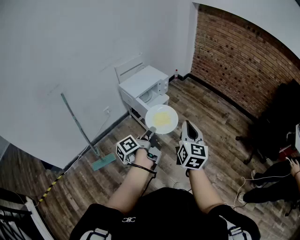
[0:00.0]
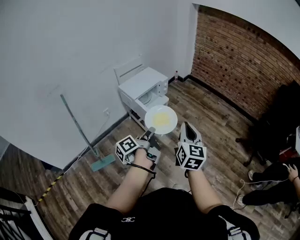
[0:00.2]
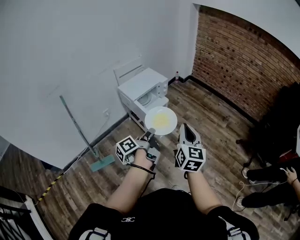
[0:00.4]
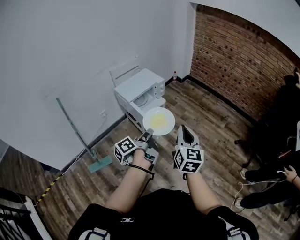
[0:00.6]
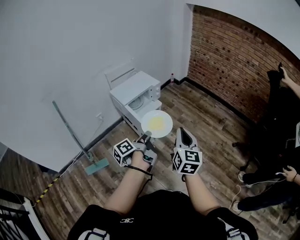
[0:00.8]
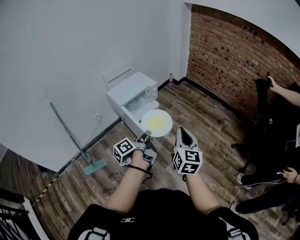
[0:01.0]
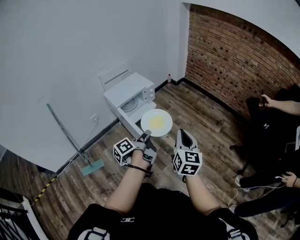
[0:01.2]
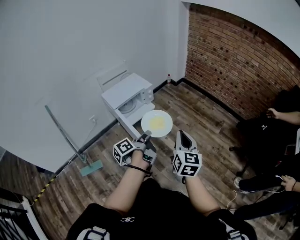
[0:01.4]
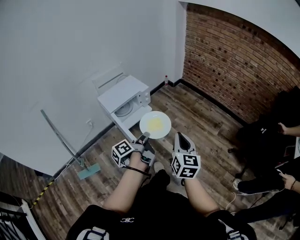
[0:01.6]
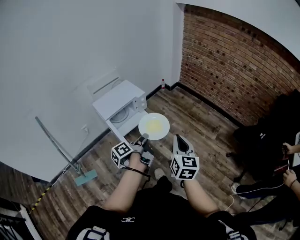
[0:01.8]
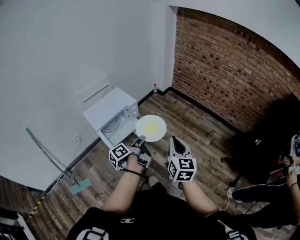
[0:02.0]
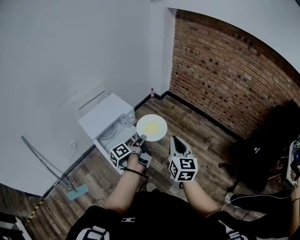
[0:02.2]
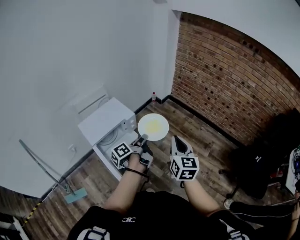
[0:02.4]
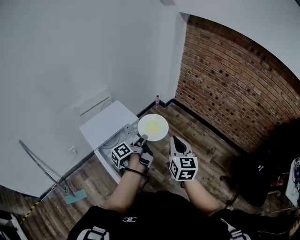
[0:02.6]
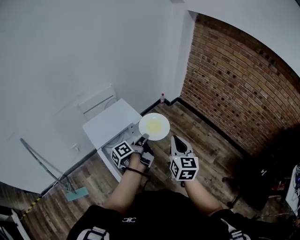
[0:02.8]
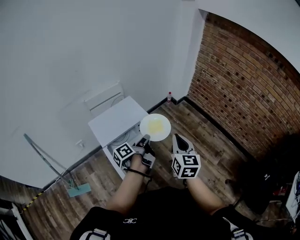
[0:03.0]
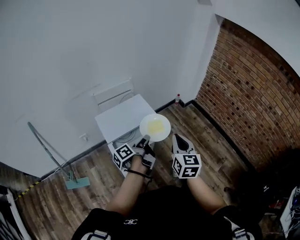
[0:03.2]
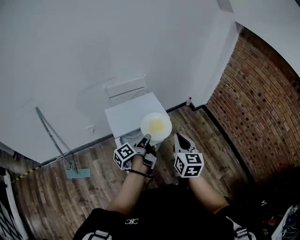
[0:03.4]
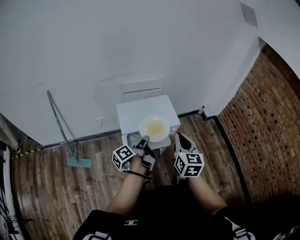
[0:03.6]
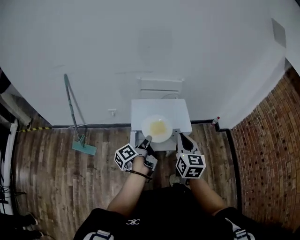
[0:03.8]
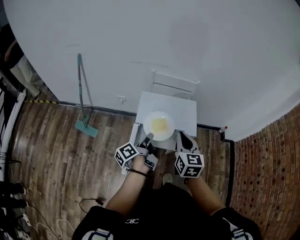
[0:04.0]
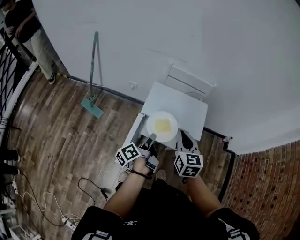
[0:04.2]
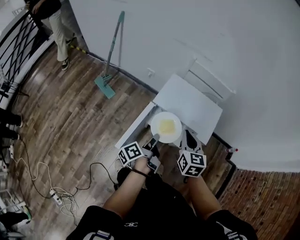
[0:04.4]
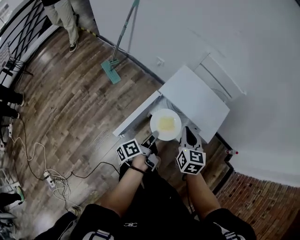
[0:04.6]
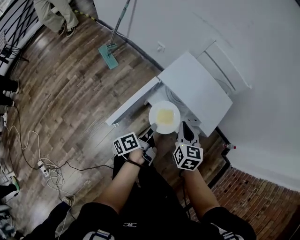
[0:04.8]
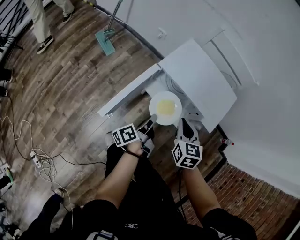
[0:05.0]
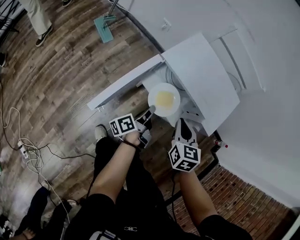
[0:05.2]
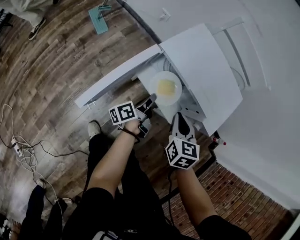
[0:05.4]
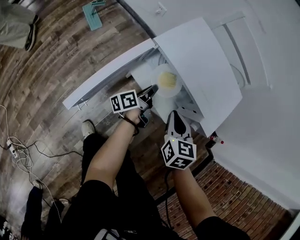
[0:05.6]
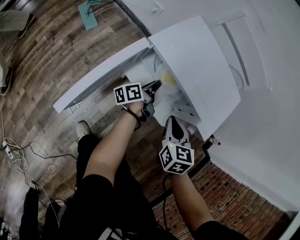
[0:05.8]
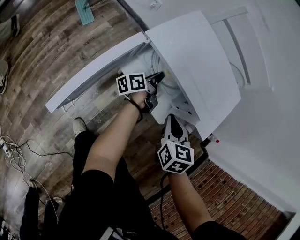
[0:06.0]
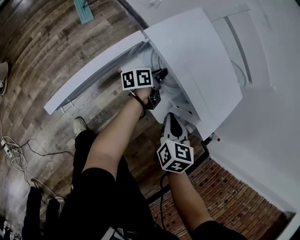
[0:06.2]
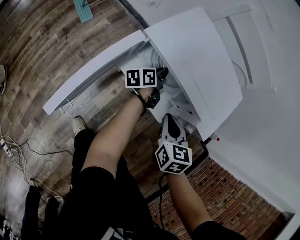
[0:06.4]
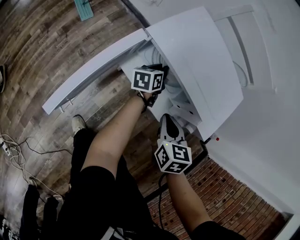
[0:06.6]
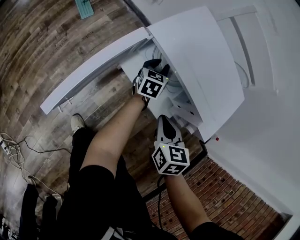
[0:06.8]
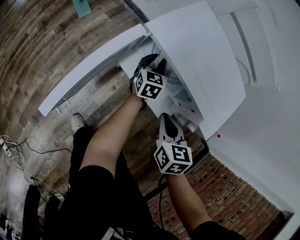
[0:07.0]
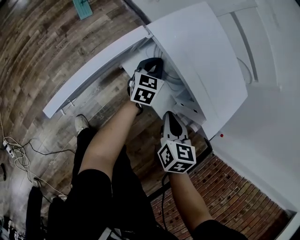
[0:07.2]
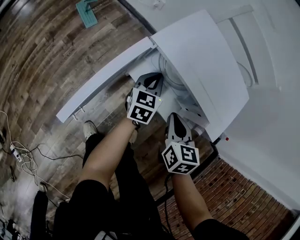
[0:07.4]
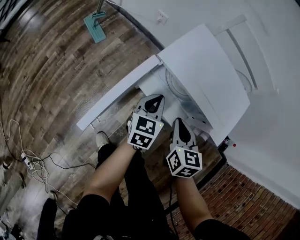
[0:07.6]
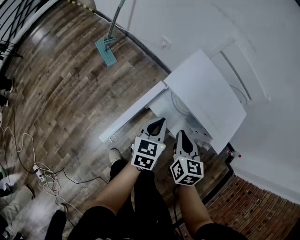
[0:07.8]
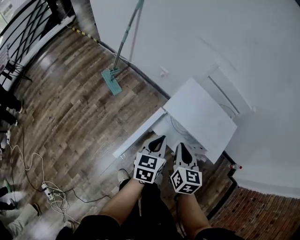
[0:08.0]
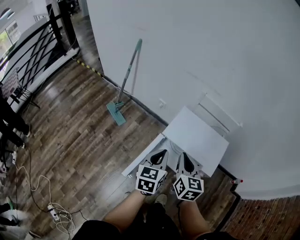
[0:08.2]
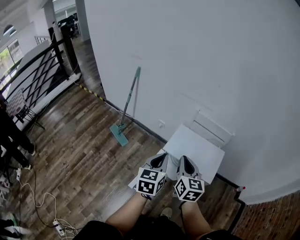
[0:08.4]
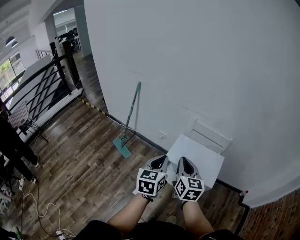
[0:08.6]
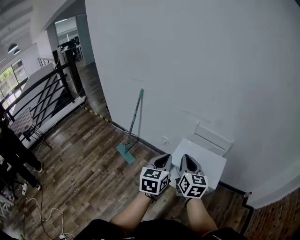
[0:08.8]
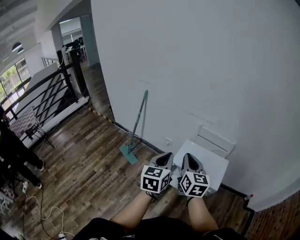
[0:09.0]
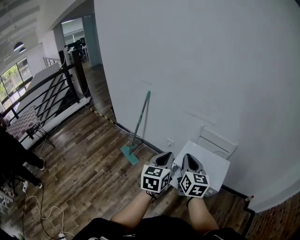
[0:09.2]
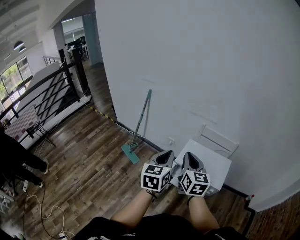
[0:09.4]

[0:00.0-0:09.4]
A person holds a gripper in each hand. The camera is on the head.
0:00.0 to 0:01.6: The right gripper ends up approximately 20 cm from where it was.
0:01.6 to 0:03.2: The right gripper shifts by roughly 35 cm.
0:03.2 to 0:04.8: The right gripper goes about 25 cm downward, and changes its angle by some 70 degrees.
0:04.8 to 0:06.2: The right gripper goes about 20 cm downward.
0:06.2 to 0:07.8: The right gripper is displaced upward by about 10 cm.
0:07.8 to 0:09.4: The right gripper shifts about 40 cm upward, and turns by roughly 30 degrees.

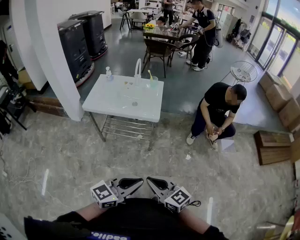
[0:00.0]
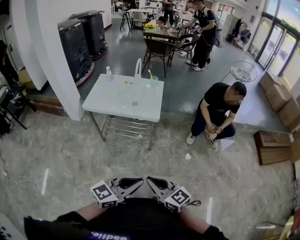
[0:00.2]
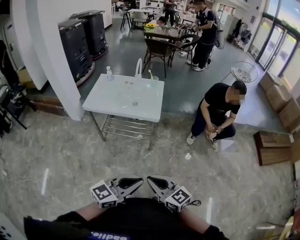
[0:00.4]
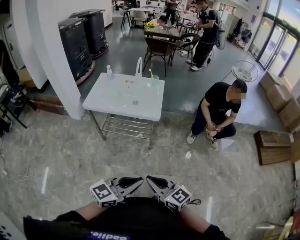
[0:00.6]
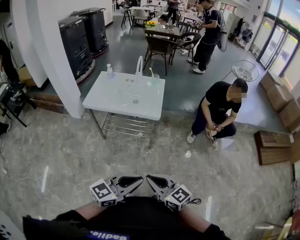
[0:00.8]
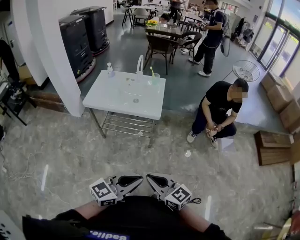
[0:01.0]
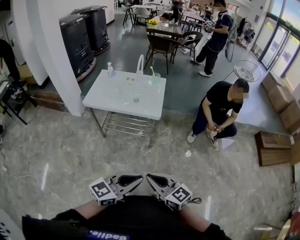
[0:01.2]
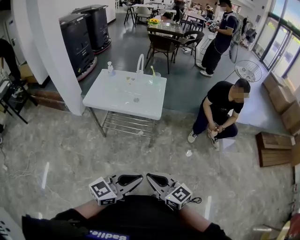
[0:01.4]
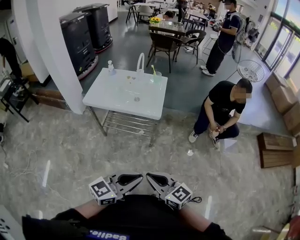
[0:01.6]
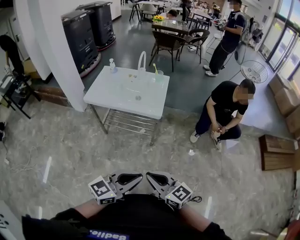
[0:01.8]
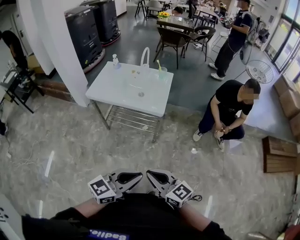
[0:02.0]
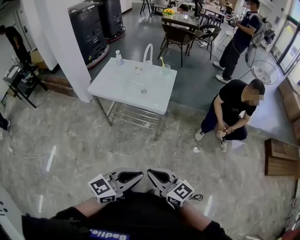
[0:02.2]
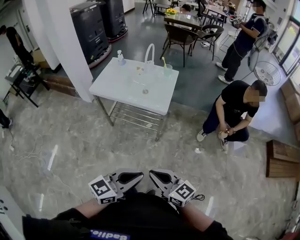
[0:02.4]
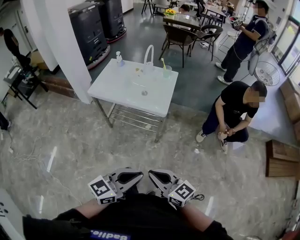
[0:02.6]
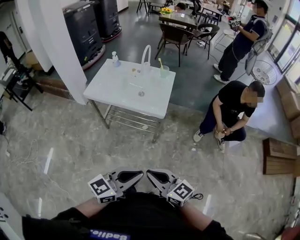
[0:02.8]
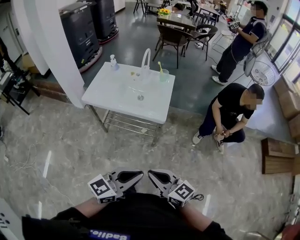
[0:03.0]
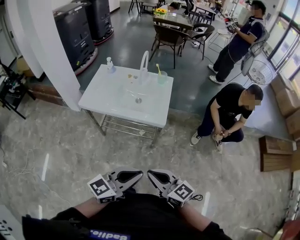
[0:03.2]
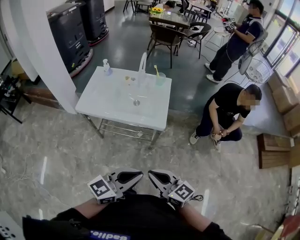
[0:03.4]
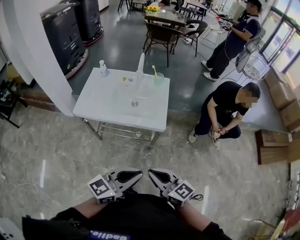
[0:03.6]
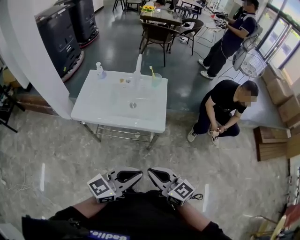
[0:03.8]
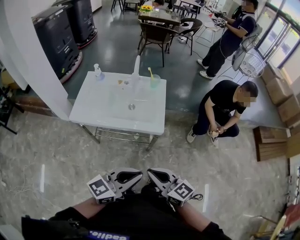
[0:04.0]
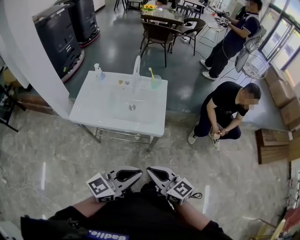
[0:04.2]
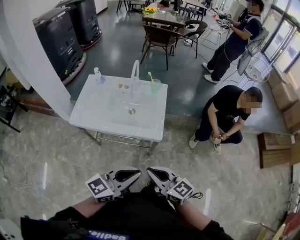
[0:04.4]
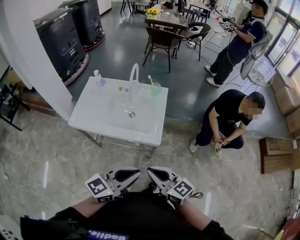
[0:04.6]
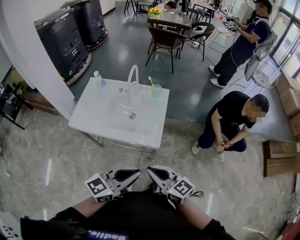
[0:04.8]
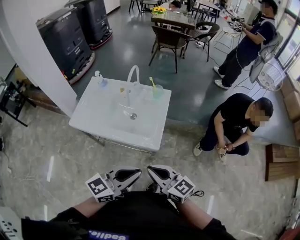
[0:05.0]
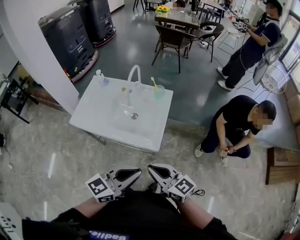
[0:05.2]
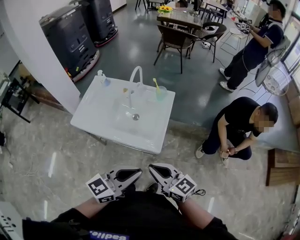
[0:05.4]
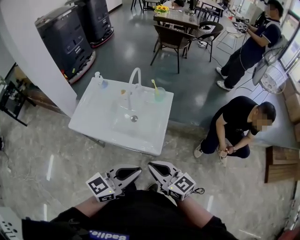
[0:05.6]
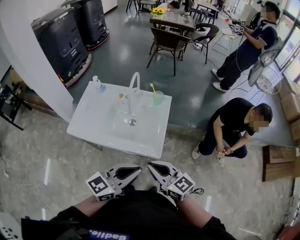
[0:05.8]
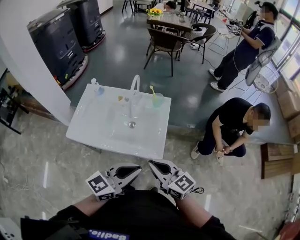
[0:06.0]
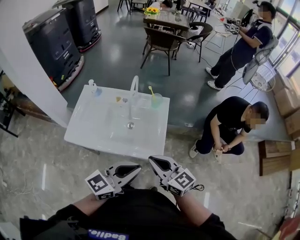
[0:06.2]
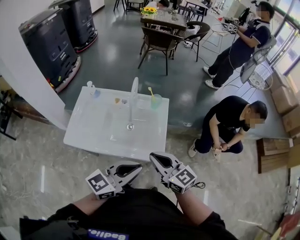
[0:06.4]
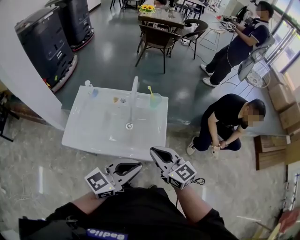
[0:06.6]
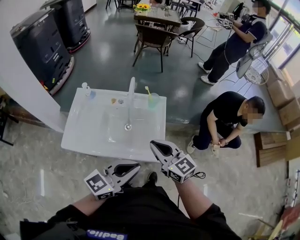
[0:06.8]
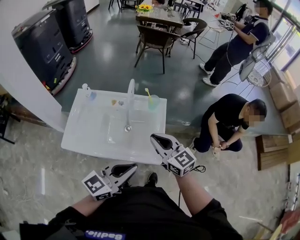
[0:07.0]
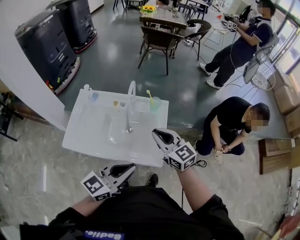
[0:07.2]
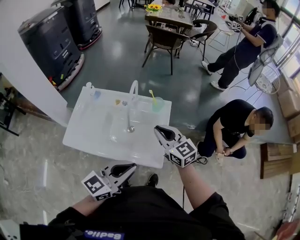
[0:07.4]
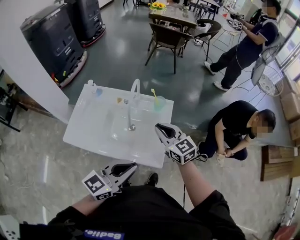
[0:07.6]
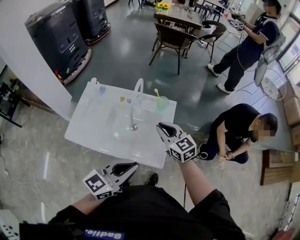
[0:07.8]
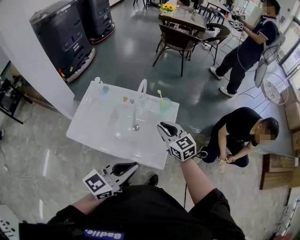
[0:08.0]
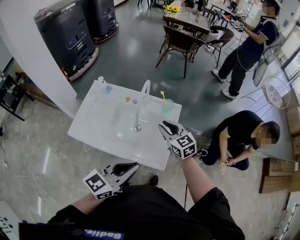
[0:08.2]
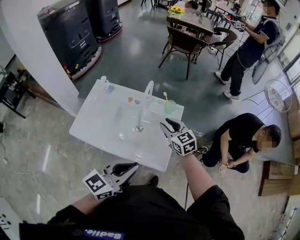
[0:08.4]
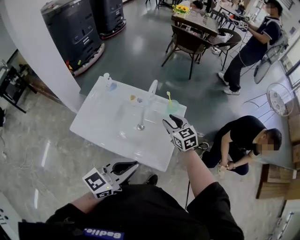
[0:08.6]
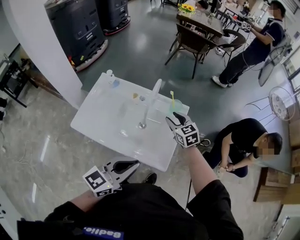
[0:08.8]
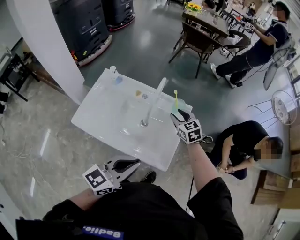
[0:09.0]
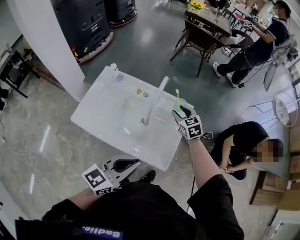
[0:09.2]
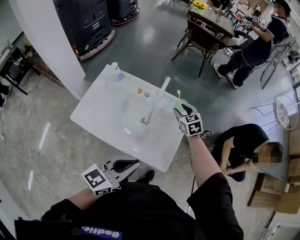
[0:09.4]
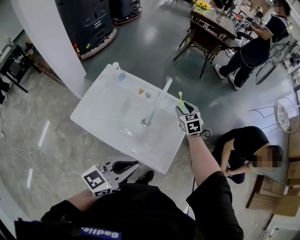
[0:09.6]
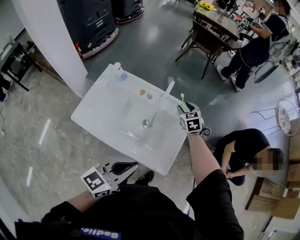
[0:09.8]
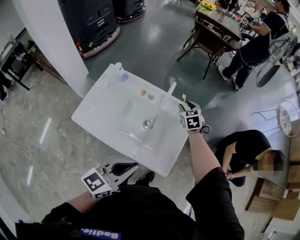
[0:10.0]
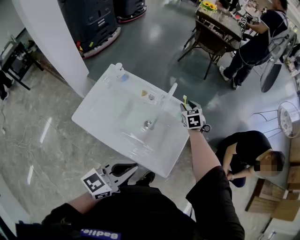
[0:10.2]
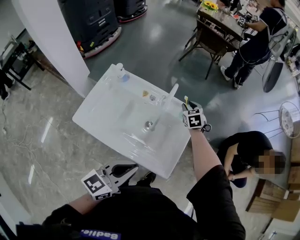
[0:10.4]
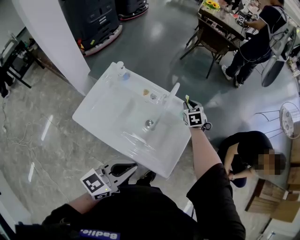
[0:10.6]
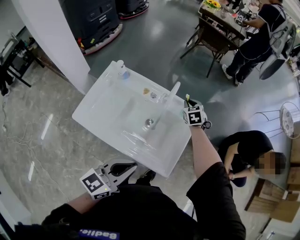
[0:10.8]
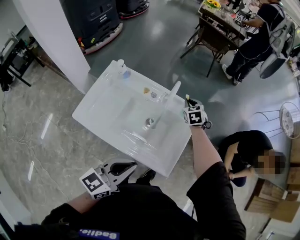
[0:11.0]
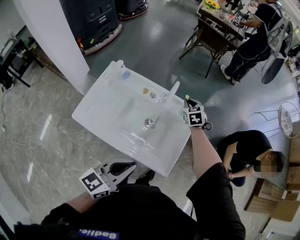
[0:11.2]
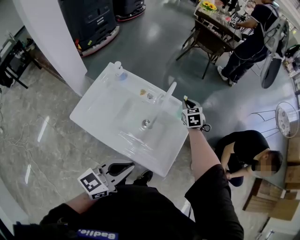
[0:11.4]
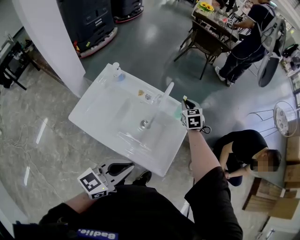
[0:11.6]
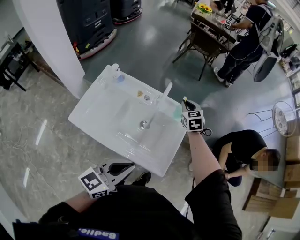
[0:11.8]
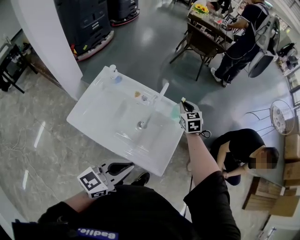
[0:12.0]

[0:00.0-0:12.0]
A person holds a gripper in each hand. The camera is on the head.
0:00.0 to 0:01.6: The grippers stay close to where they were, moving slightly.
0:01.6 to 0:03.0: The two grippers go some 10 cm forward.
0:03.0 to 0:04.4: Both grippers travel together forward, some 15 cm.
0:04.4 to 0:06.0: The two grippers go some 15 cm forward.
0:06.0 to 0:07.6: The left gripper shifts approximately 5 cm forward, while the right gripper travels forward by approximately 20 cm.
0:07.6 to 0:09.0: The right gripper moves forward and downward, some 15 cm, and opens.
0:09.0 to 0:10.4: The right gripper travels forward and downward by approximately 15 cm.
0:10.4 to 0:12.0: The right gripper moves upward, approximately 10 cm, and closes its fingers.

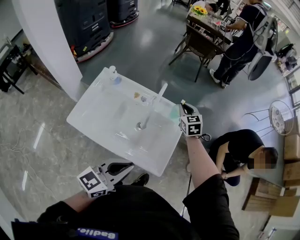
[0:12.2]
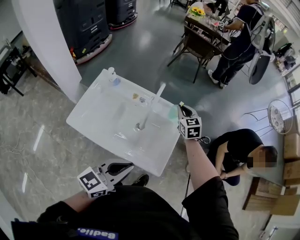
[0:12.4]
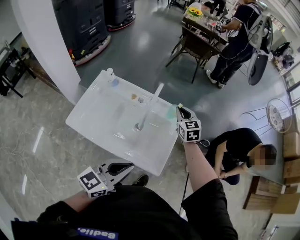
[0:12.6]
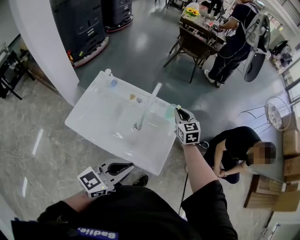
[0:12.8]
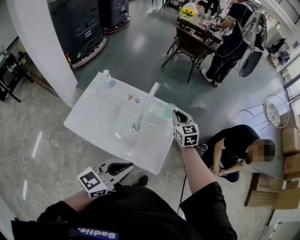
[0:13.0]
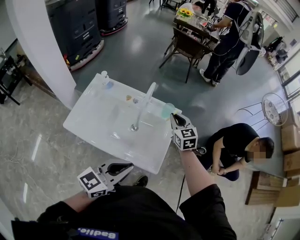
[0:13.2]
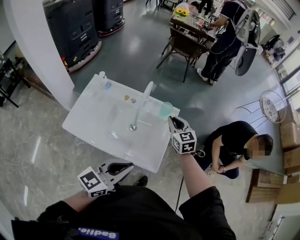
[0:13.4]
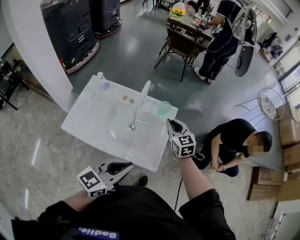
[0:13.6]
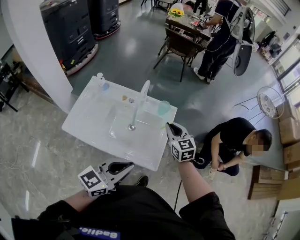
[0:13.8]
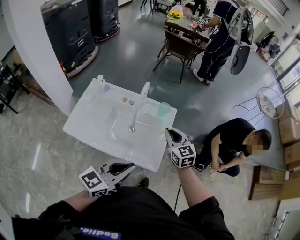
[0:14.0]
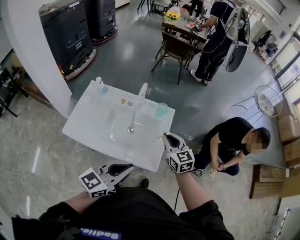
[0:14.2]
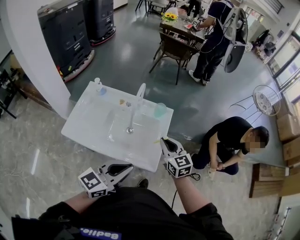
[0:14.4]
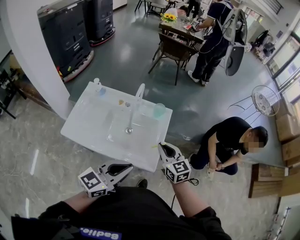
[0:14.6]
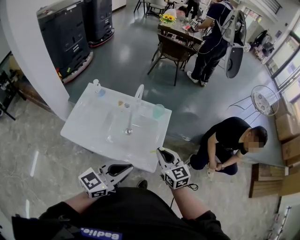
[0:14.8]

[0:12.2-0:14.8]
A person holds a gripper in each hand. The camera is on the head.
0:12.2 to 0:13.4: The right gripper is displaced backward by approximately 10 cm.
0:13.4 to 0:14.8: The right gripper moves backward, roughly 20 cm.
